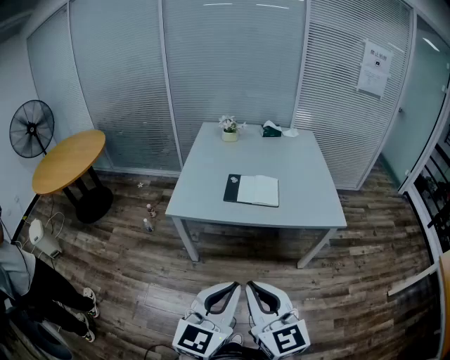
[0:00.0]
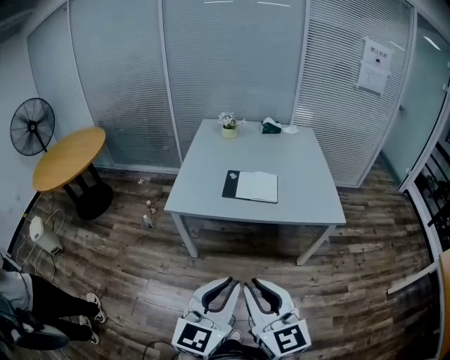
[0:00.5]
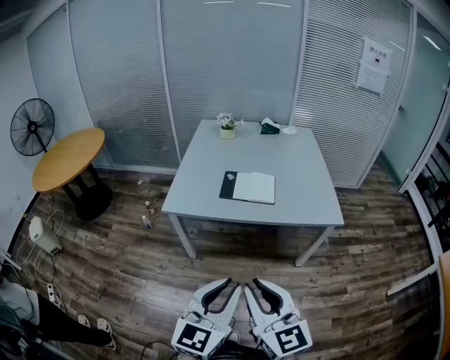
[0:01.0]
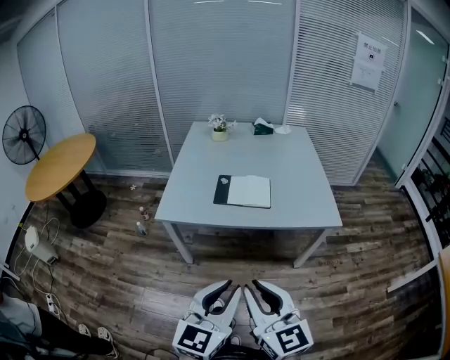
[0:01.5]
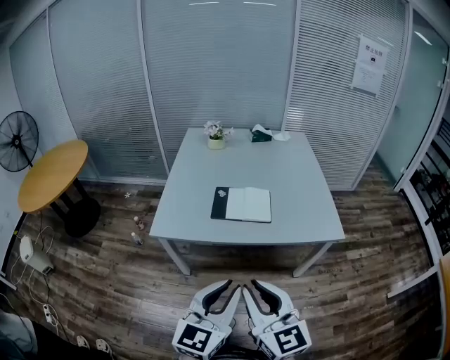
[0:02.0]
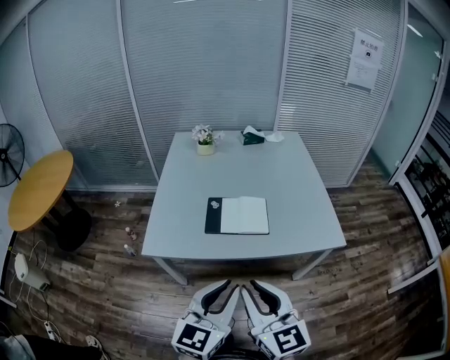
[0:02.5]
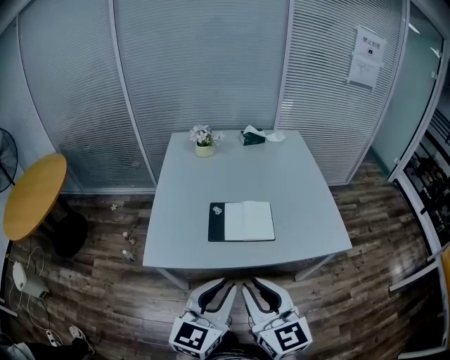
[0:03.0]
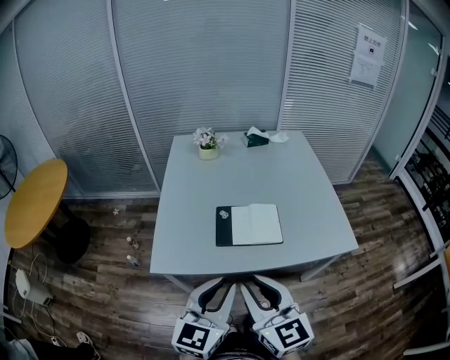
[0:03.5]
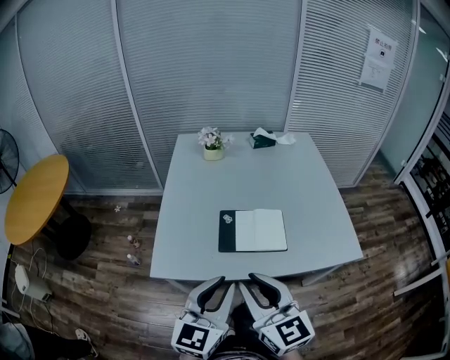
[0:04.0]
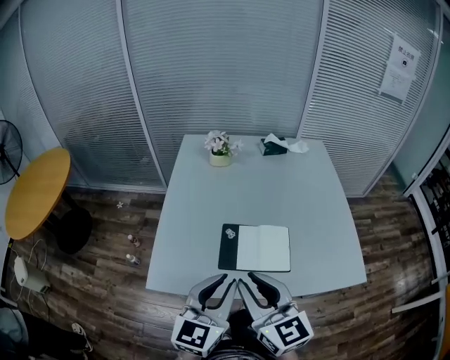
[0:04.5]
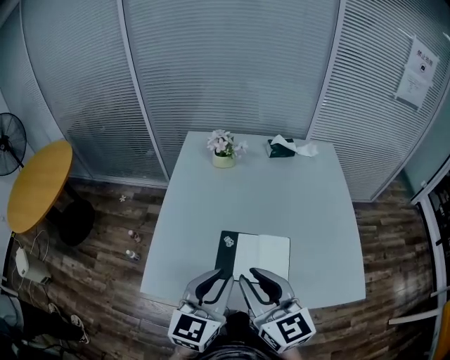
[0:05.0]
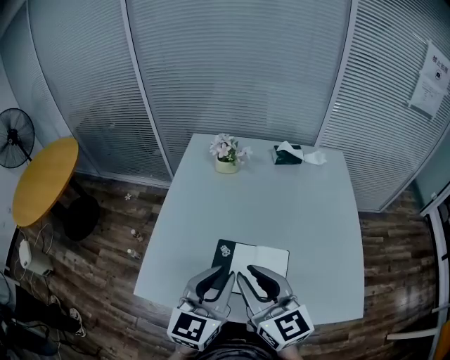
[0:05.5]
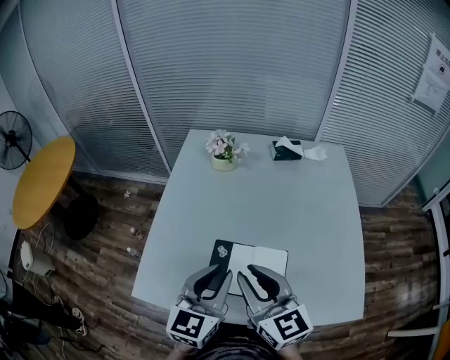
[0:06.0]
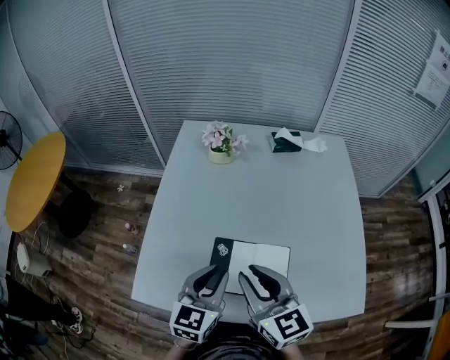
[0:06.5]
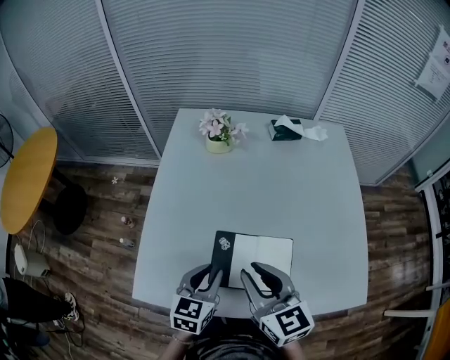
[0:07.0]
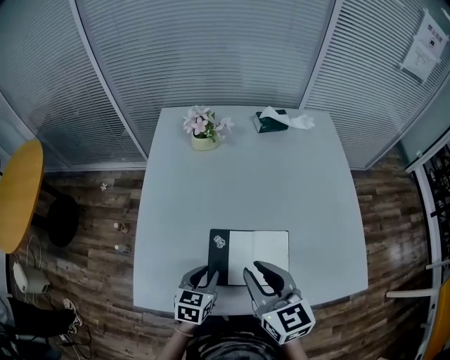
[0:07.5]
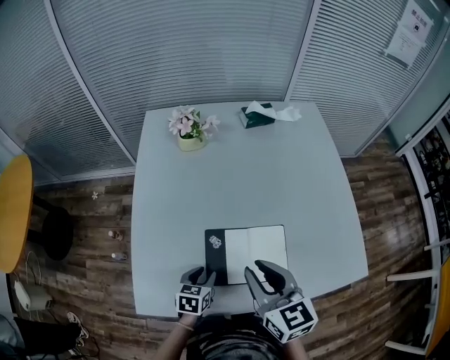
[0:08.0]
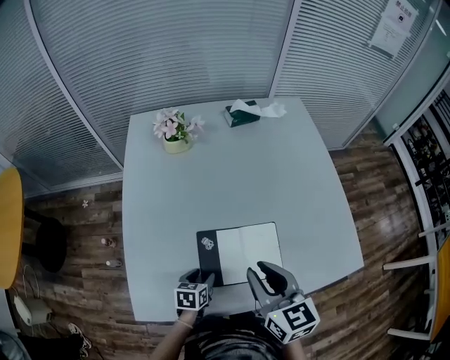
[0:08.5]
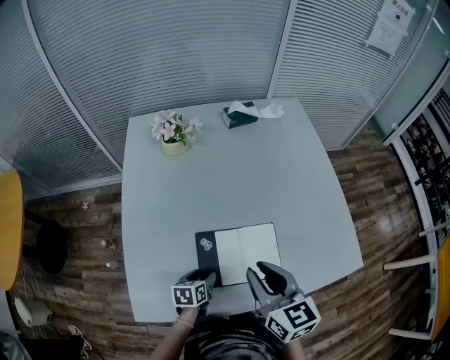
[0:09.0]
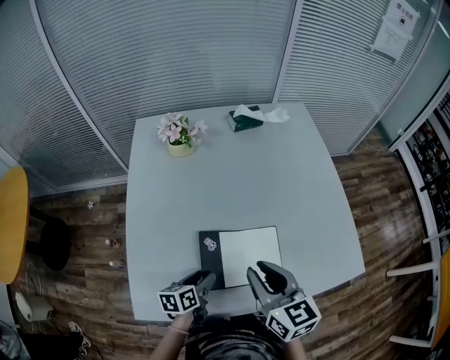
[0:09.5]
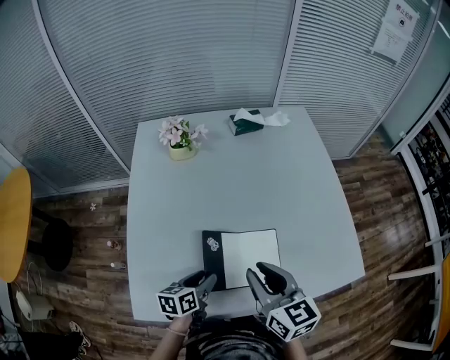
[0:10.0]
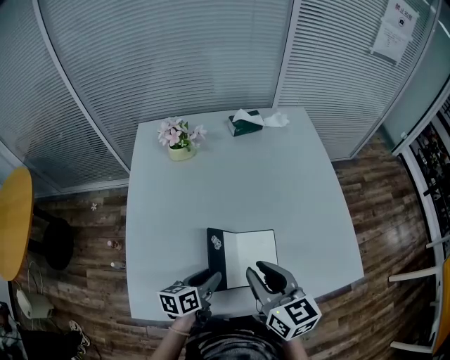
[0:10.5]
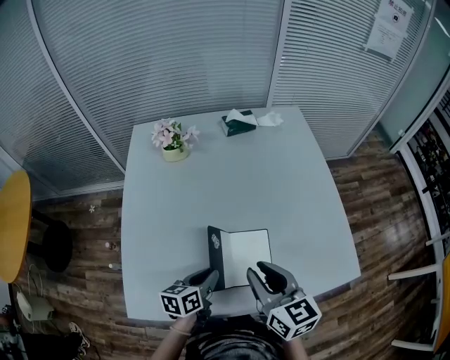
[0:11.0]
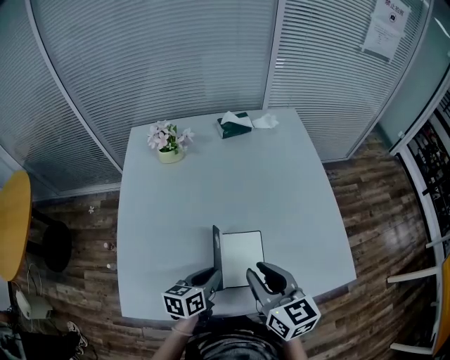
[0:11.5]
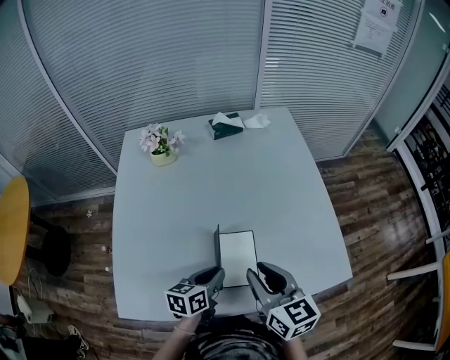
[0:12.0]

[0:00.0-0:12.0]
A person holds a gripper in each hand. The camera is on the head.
0:00.0 to 0:02.0: The grippers both shift forward by roughly 10 cm.
0:02.0 to 0:04.0: The right gripper travels forward by some 20 cm. The left gripper goes roughly 25 cm forward and to the left.
0:04.0 to 0:06.0: Both grippers travel together forward, some 25 cm.
0:06.0 to 0:08.0: The right gripper moves downward, approximately 5 cm, and turns by some 20 degrees. The left gripper moves downward, approximately 30 cm, and angles its fingers downward, by about 30 degrees.
0:08.0 to 0:10.0: The left gripper moves upward, approximately 5 cm, and turns by about 20 degrees.
0:10.0 to 0:12.0: Both grippers move to the right, some 10 cm. The left gripper closes up.

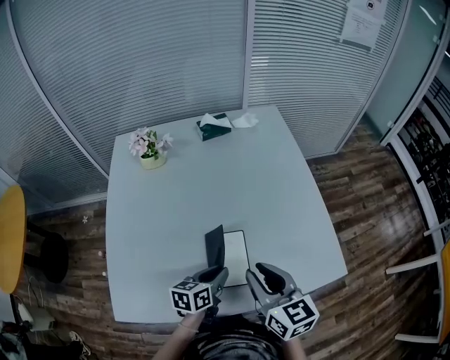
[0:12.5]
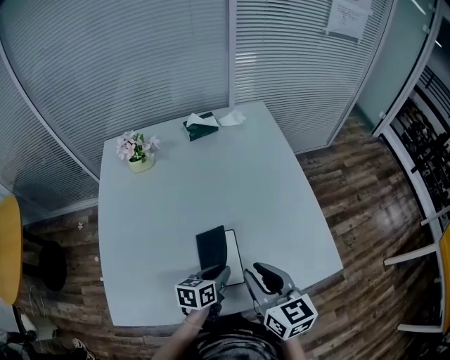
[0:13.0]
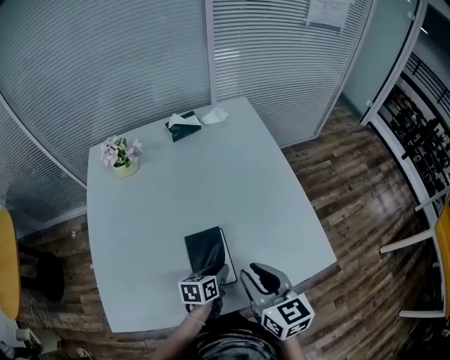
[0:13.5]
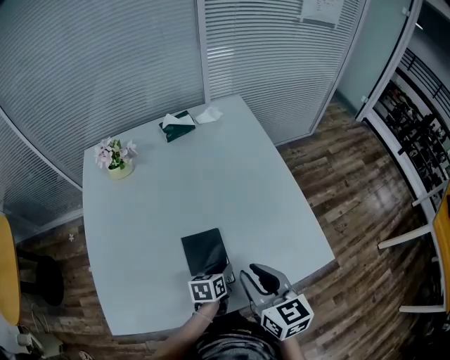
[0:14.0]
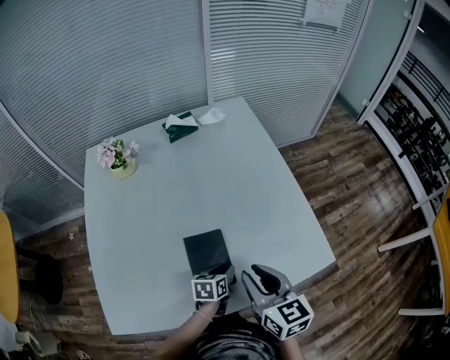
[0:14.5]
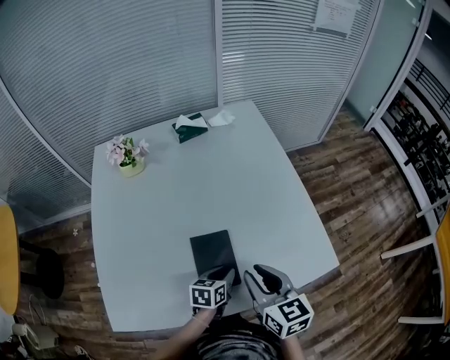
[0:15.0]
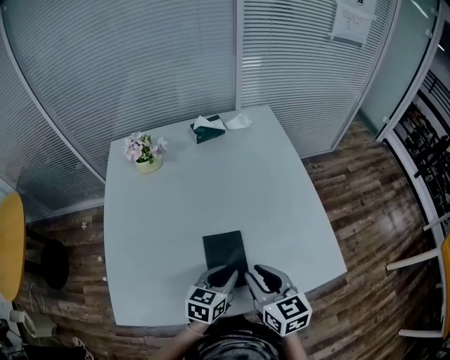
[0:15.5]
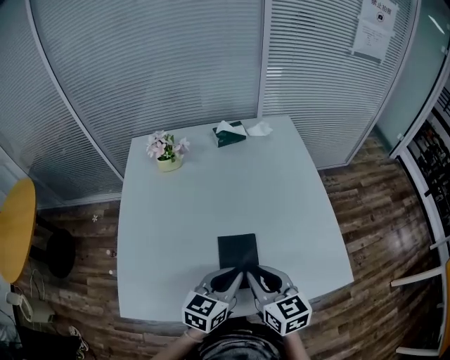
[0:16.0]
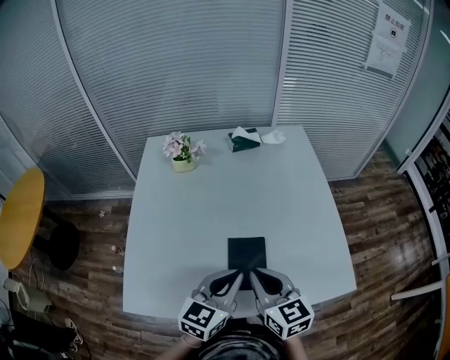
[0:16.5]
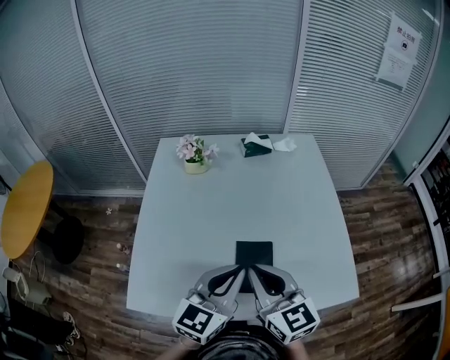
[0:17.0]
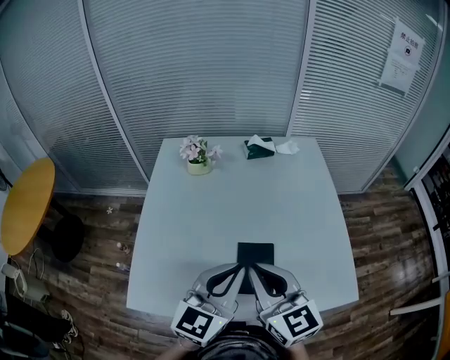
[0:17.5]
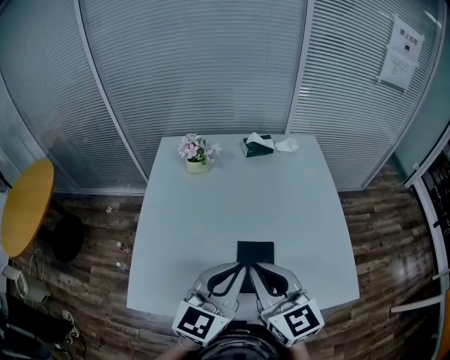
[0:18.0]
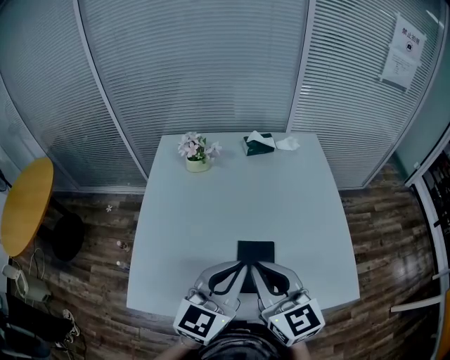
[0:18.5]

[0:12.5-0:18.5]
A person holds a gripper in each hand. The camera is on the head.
0:12.5 to 0:14.5: The left gripper is displaced downward and to the right by about 15 cm, while the right gripper travels to the right by roughly 5 cm.
0:14.5 to 0:16.5: The right gripper shifts approximately 10 cm to the left, and closes; the left gripper goes some 25 cm upward, swivels about 40 degrees, and closes its fingers.
0:16.5 to 0:18.5: Both grippers move upward, some 10 cm.

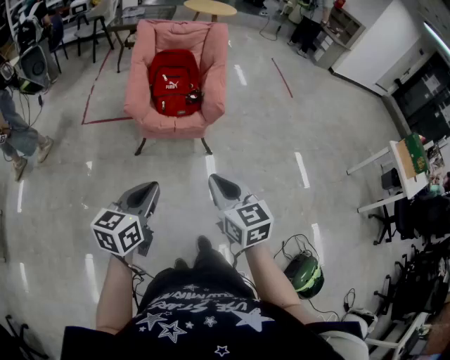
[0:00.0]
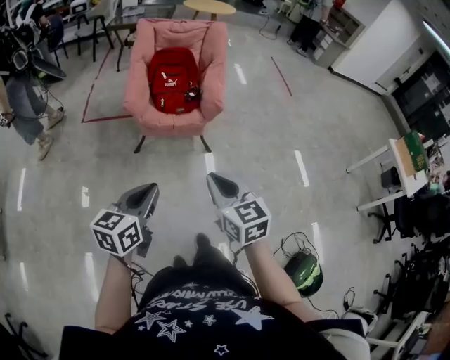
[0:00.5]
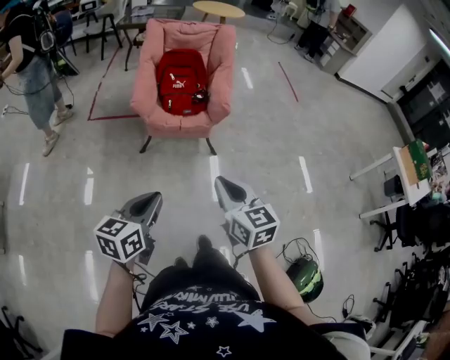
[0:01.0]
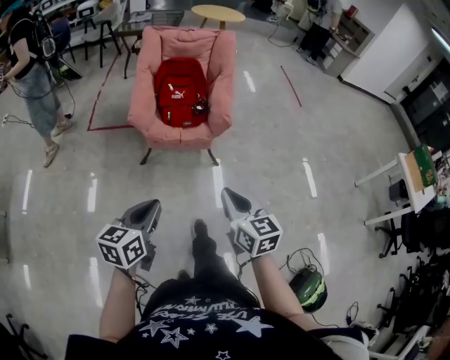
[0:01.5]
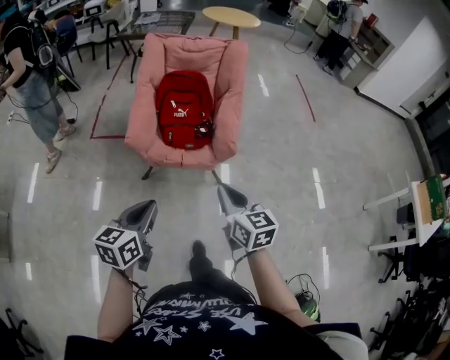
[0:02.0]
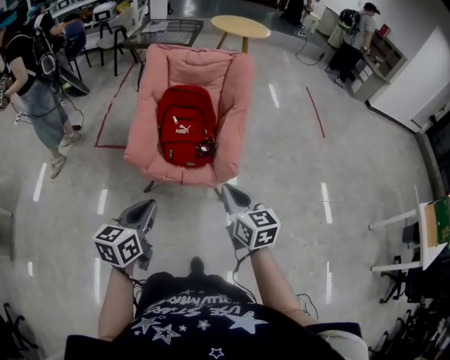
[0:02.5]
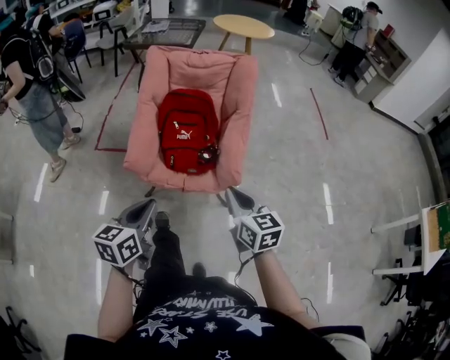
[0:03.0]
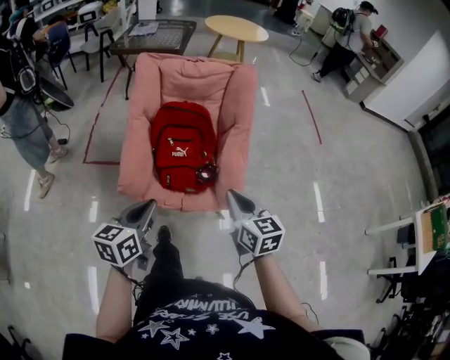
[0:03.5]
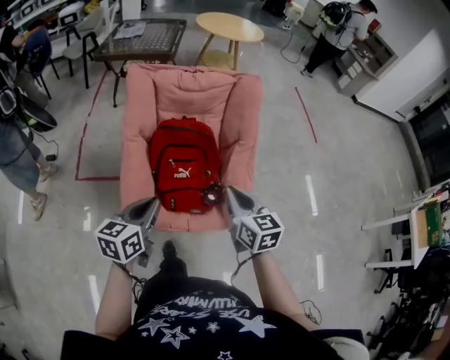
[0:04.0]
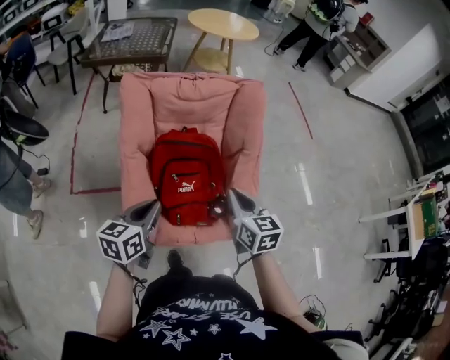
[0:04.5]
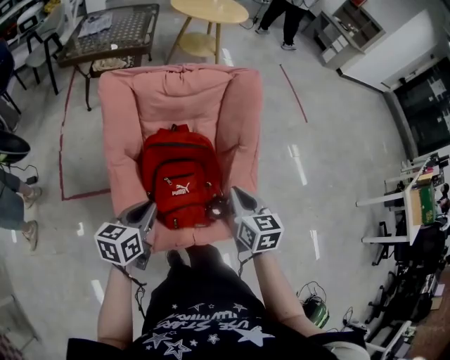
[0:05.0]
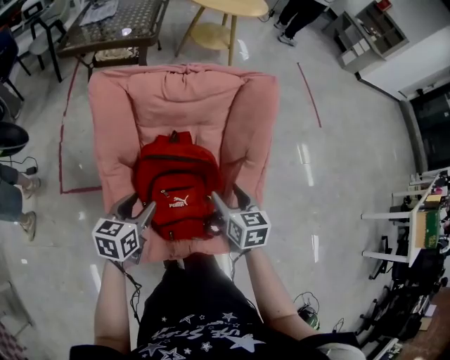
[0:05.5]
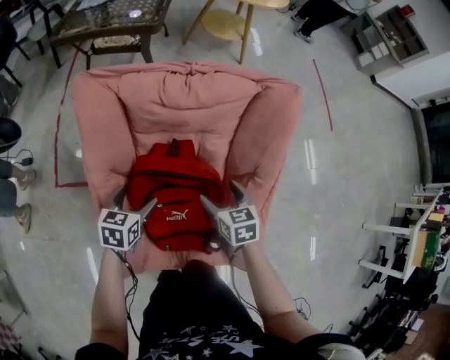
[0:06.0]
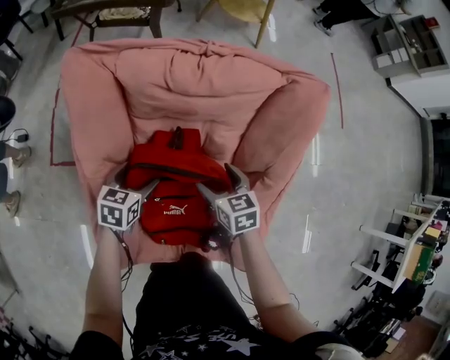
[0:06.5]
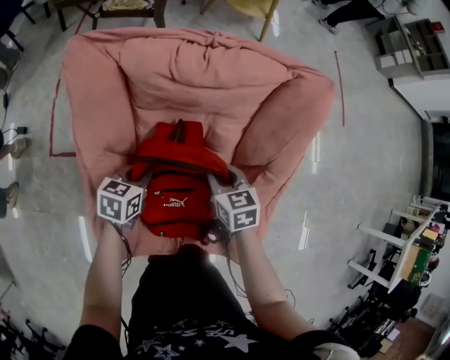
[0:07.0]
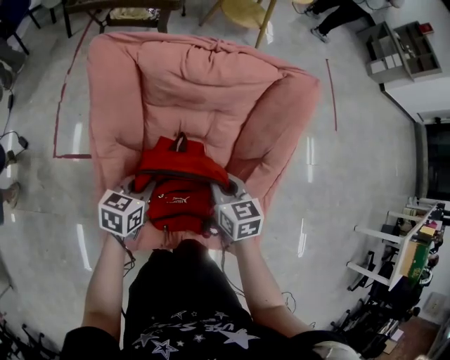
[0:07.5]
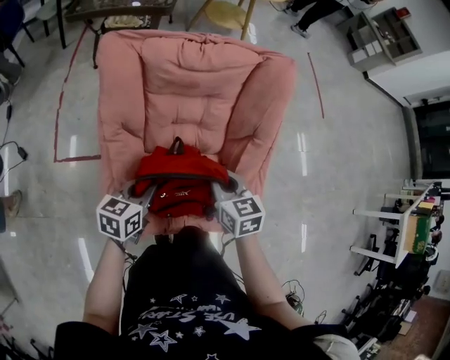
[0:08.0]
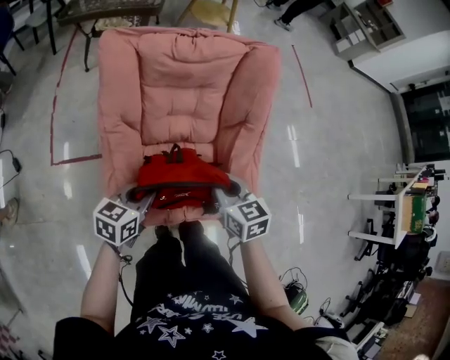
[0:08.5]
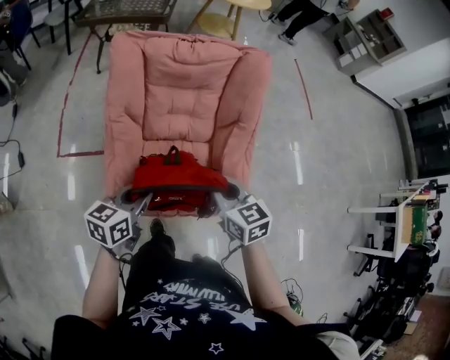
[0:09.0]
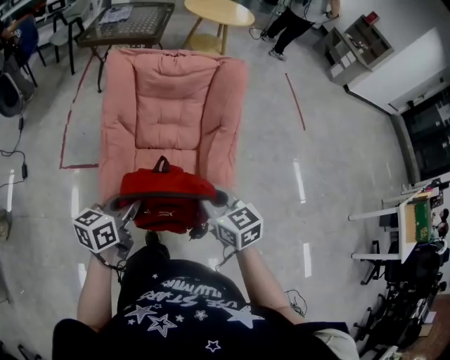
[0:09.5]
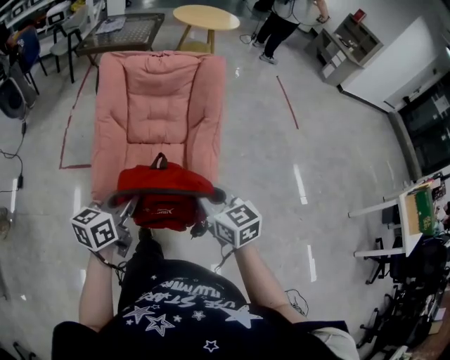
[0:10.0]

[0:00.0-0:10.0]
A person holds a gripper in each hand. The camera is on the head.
0:00.0 to 0:02.0: Both grippers travel together forward, about 25 cm.
0:02.0 to 0:04.0: The pair of grippers is taken forward, roughly 40 cm.
0:04.0 to 0:06.0: Both grippers move forward and downward, about 40 cm. The right gripper changes its angle by approximately 20 degrees, and opens up; the left gripper swivels some 20 degrees, and opens its fingers.
0:06.0 to 0:08.0: The left gripper shifts some 15 cm backward and upward, and closes, while the right gripper moves backward, upward and to the left, about 15 cm, and closes up.
0:08.0 to 0:10.0: The right gripper shifts approximately 40 cm backward, to the right and upward. Meanwhile the left gripper shifts roughly 40 cm backward, upward and to the right.
